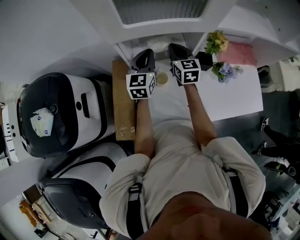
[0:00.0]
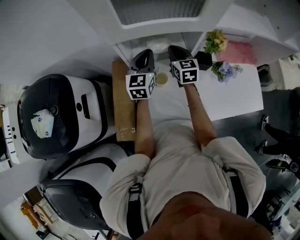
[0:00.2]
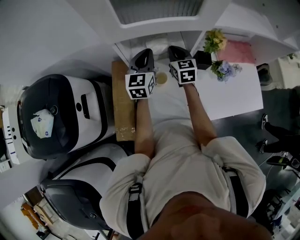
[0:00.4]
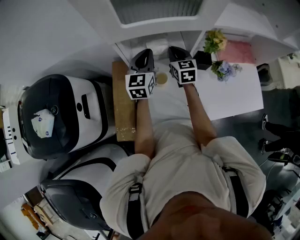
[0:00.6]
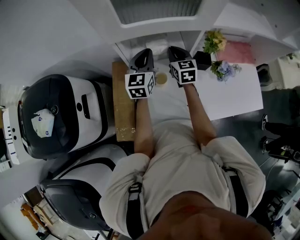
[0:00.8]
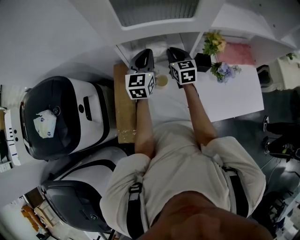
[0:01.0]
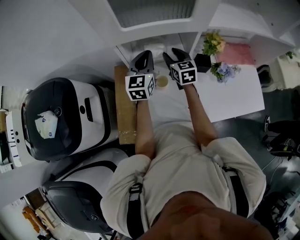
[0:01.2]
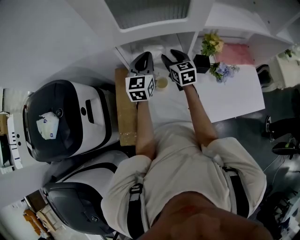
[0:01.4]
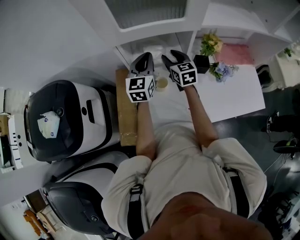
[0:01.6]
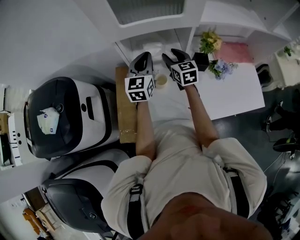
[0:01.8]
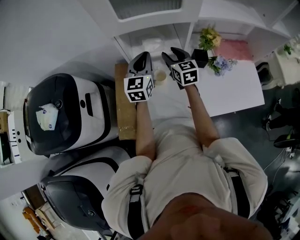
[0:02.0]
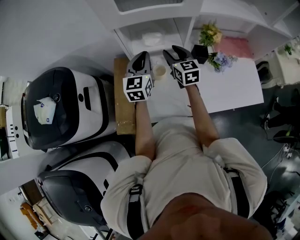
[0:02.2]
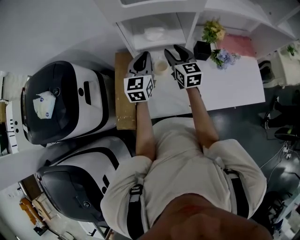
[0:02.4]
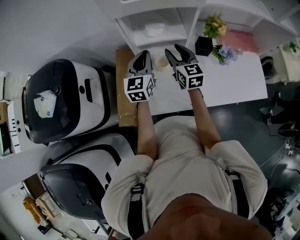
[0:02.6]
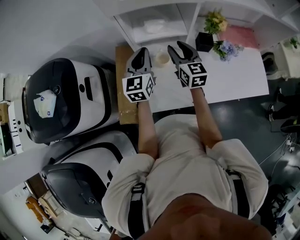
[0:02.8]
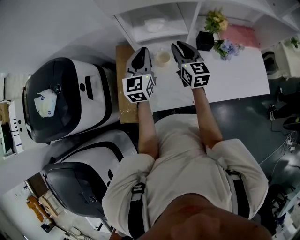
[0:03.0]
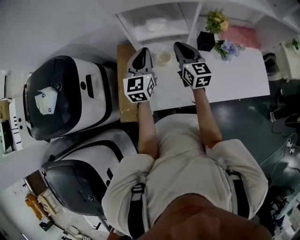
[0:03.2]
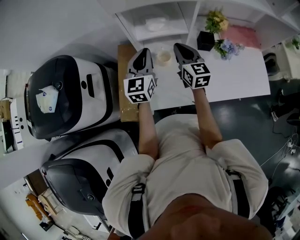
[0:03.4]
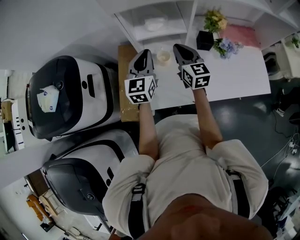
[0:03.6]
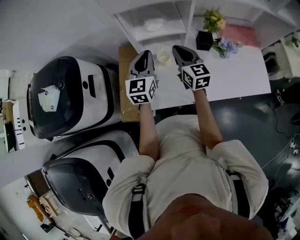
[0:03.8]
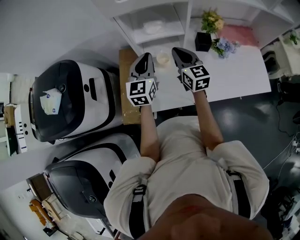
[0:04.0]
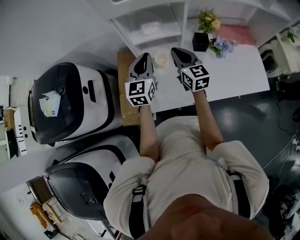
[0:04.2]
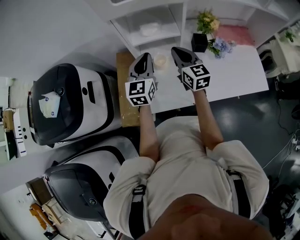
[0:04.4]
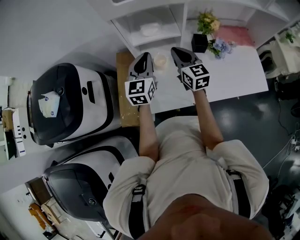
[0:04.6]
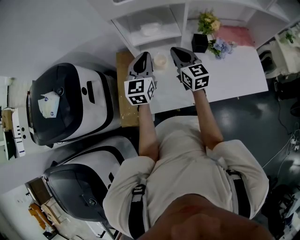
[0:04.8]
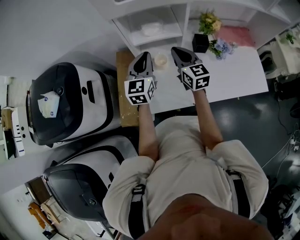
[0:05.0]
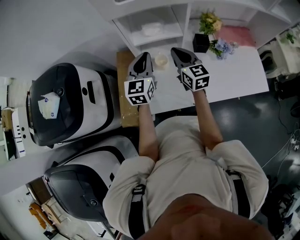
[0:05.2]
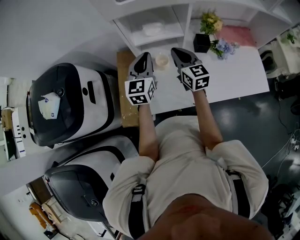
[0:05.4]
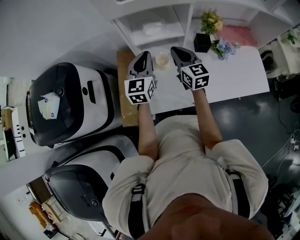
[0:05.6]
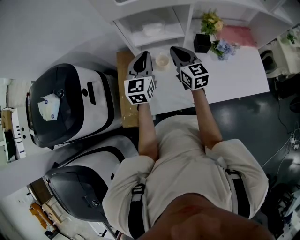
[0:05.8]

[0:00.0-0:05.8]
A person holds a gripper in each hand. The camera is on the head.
0:00.0 to 0:01.4: The right gripper opens.
0:01.4 to 0:02.8: The grippers both shift backward by approximately 10 cm.
0:02.8 to 0:04.4: The left gripper changes place by about 5 cm; the right gripper moves some 5 cm, and closes its fingers.
0:04.4 to 0:05.8: The grippers stay close to where they were, moving slightly.

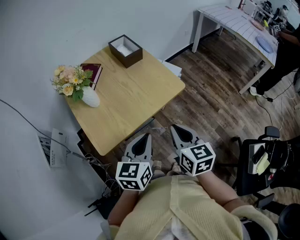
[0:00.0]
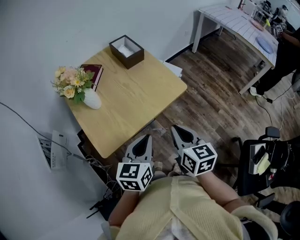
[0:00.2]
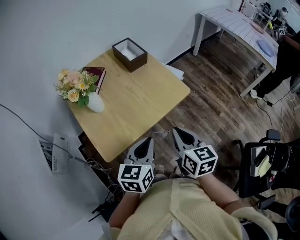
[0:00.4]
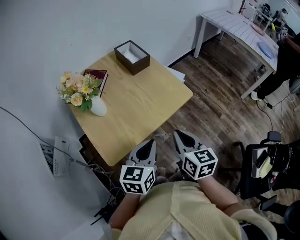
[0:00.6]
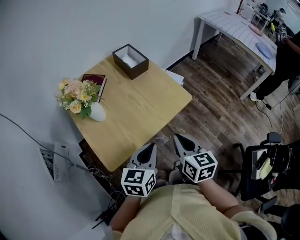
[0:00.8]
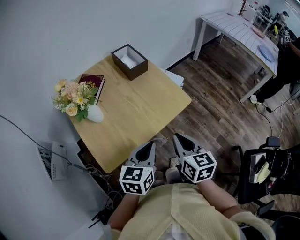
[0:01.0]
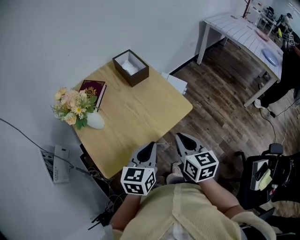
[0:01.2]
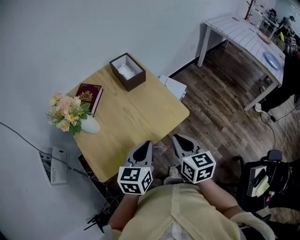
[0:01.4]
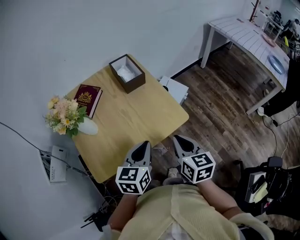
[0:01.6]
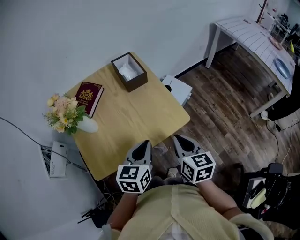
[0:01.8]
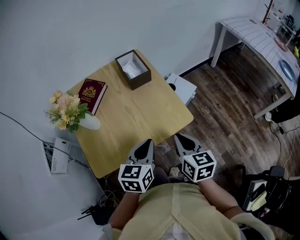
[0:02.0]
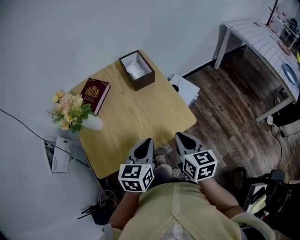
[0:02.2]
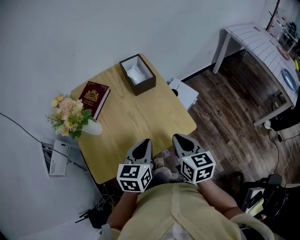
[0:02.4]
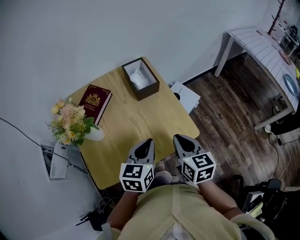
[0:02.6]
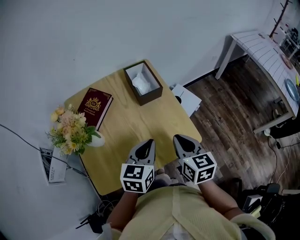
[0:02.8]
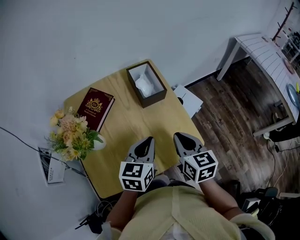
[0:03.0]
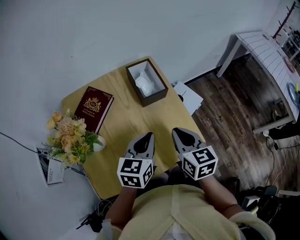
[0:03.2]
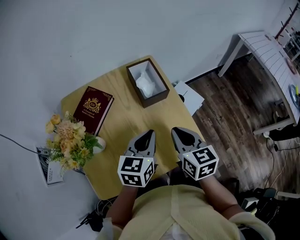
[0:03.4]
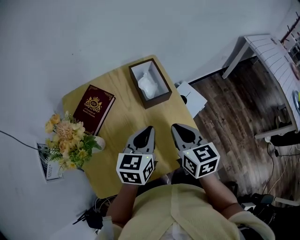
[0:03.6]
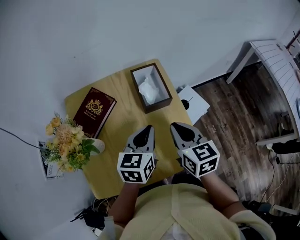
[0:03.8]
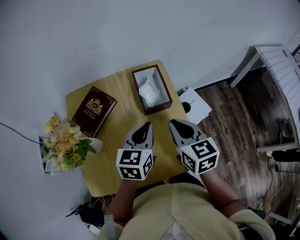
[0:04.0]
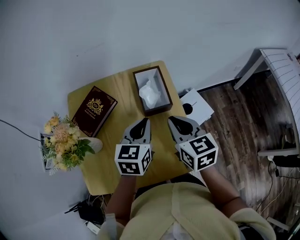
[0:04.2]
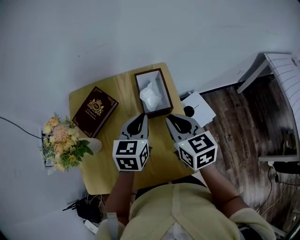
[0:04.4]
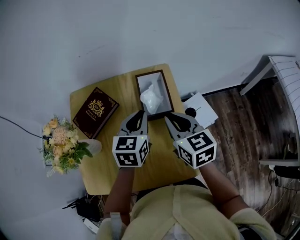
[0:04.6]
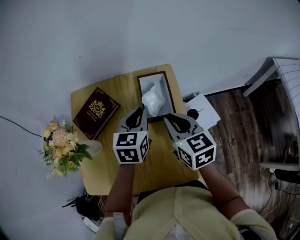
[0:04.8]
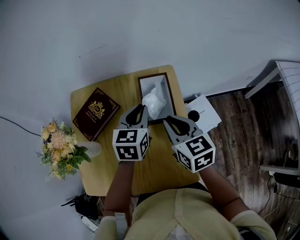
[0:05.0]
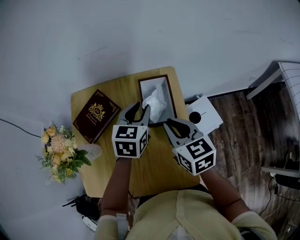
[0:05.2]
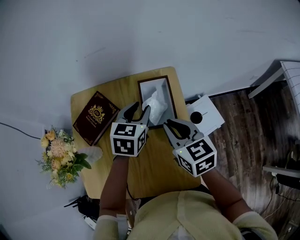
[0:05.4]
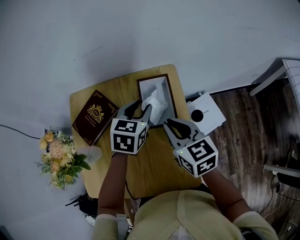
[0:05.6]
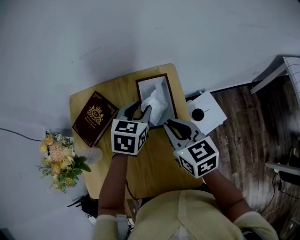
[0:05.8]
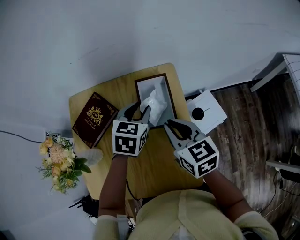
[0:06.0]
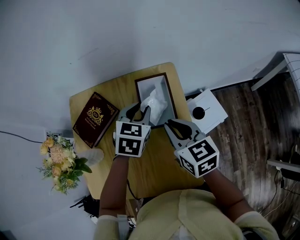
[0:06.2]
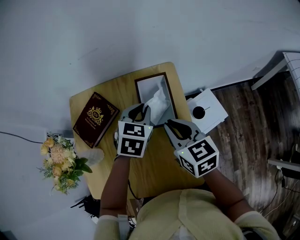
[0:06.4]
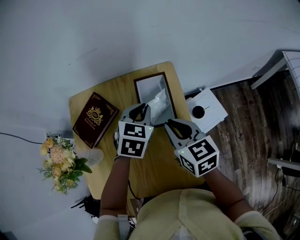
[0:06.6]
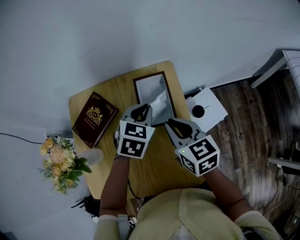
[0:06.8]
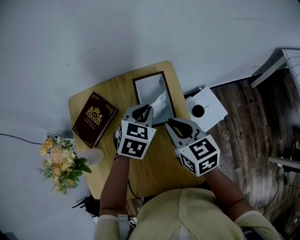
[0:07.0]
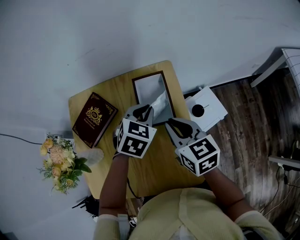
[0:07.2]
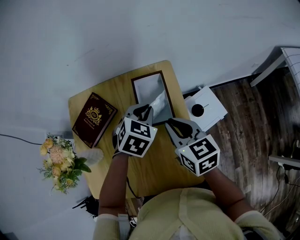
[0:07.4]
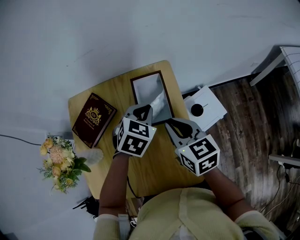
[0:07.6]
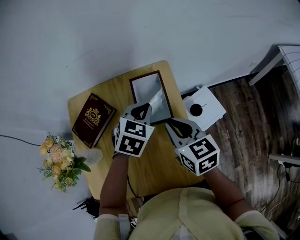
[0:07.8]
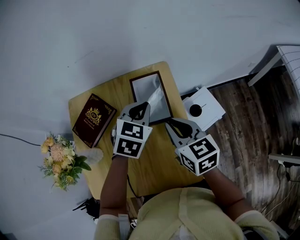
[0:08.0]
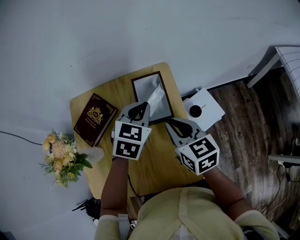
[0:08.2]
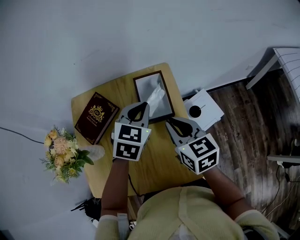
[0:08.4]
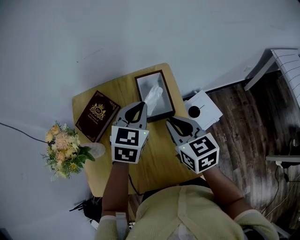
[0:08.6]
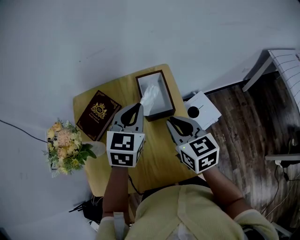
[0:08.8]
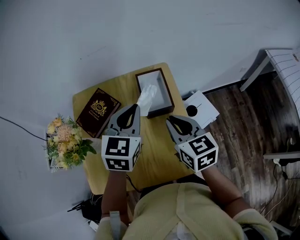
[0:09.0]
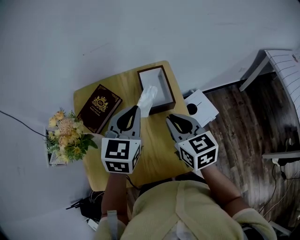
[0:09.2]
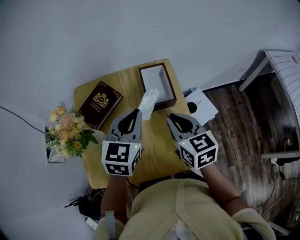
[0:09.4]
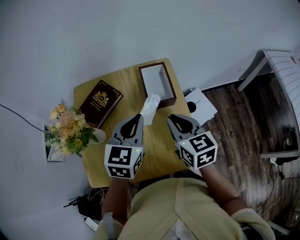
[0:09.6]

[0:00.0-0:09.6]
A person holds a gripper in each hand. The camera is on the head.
0:00.0 to 0:01.6: The two grippers go some 15 cm forward.
0:01.6 to 0:03.2: The two grippers go some 15 cm forward.
0:03.2 to 0:04.8: Both grippers move forward, roughly 15 cm. The left gripper changes its angle by roughly 20 degrees, while the right gripper turns by approximately 20 degrees.
0:04.8 to 0:06.4: The left gripper ends up approximately 5 cm from where it was, and swivels about 20 degrees.
0:06.4 to 0:08.0: The grippers make only small movements.
0:08.0 to 0:09.6: The left gripper shifts some 15 cm backward, to the left and upward, and rotates approximately 20 degrees, while the right gripper heads backward, covering about 5 cm.

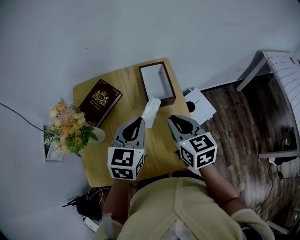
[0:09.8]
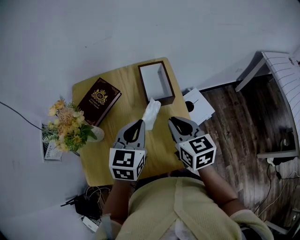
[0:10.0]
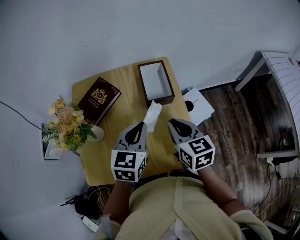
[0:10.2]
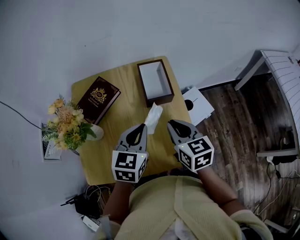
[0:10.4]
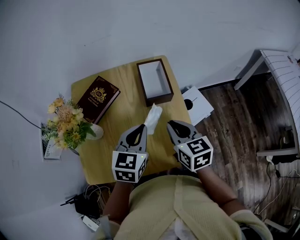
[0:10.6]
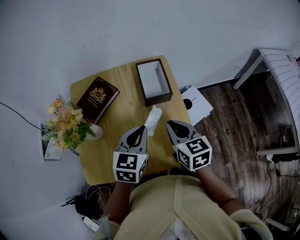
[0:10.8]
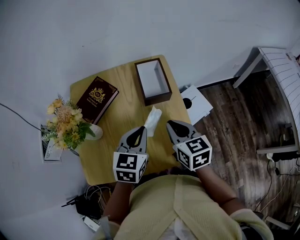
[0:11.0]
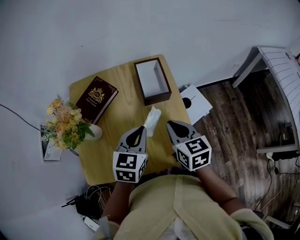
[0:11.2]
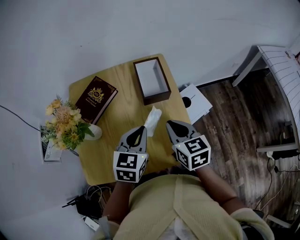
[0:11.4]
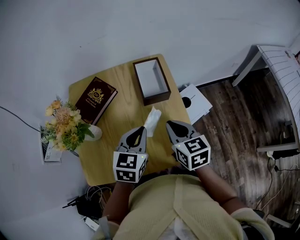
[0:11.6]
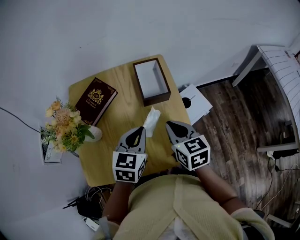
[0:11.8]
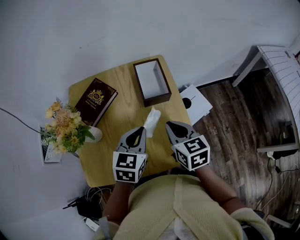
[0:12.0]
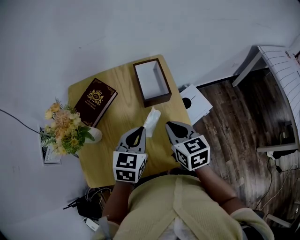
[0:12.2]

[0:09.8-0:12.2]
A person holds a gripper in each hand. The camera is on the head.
0:09.8 to 0:11.0: The left gripper shifts by approximately 5 cm.
0:11.0 to 0:12.2: Both grippers stay about where they are.

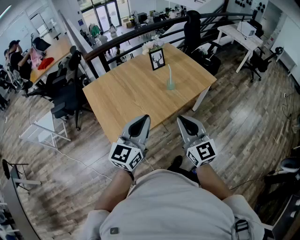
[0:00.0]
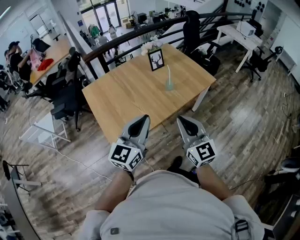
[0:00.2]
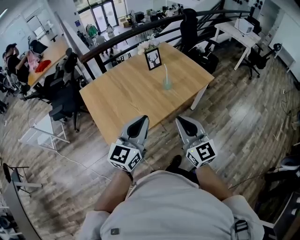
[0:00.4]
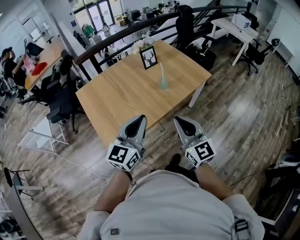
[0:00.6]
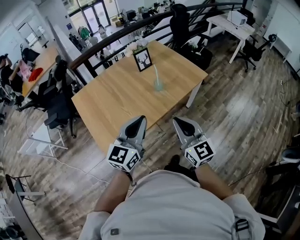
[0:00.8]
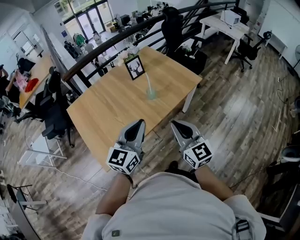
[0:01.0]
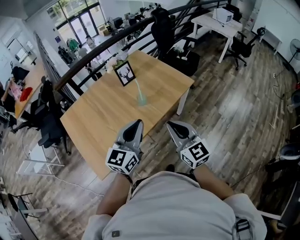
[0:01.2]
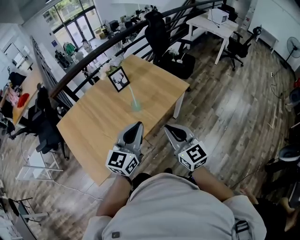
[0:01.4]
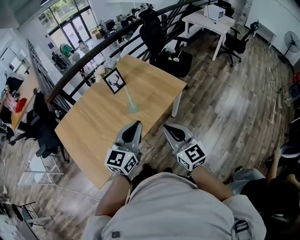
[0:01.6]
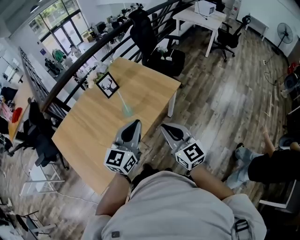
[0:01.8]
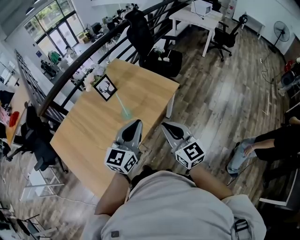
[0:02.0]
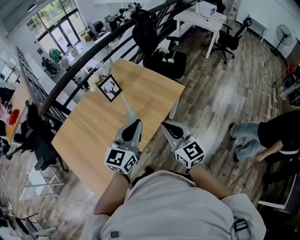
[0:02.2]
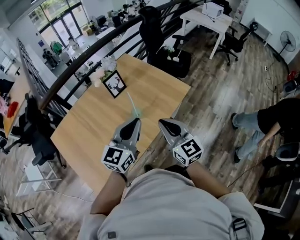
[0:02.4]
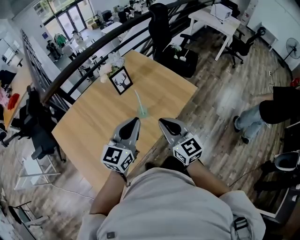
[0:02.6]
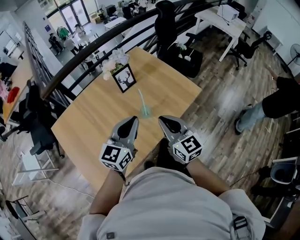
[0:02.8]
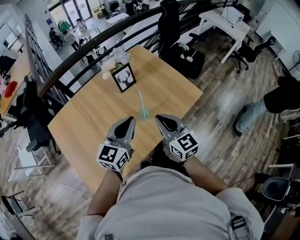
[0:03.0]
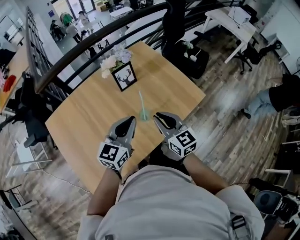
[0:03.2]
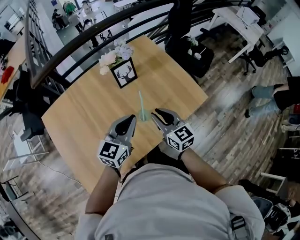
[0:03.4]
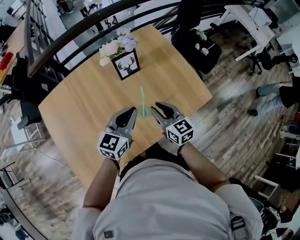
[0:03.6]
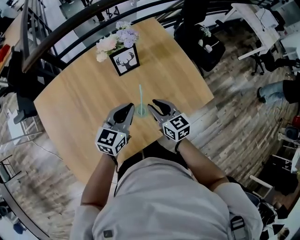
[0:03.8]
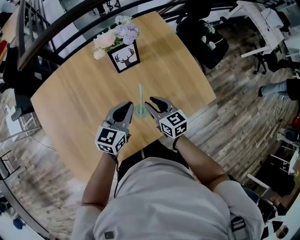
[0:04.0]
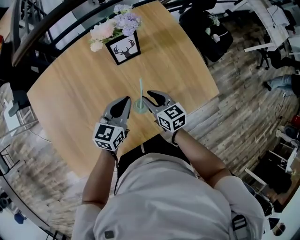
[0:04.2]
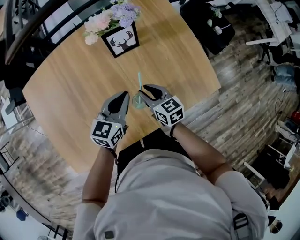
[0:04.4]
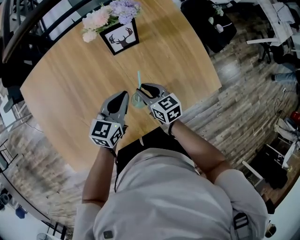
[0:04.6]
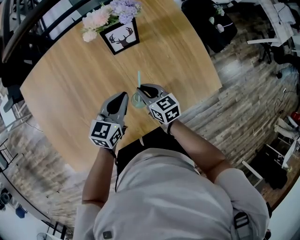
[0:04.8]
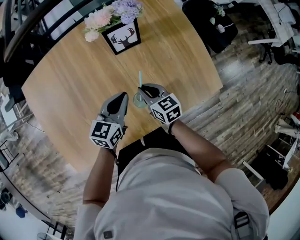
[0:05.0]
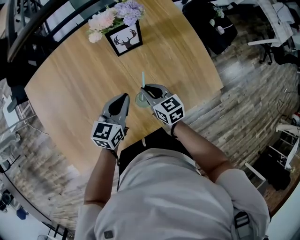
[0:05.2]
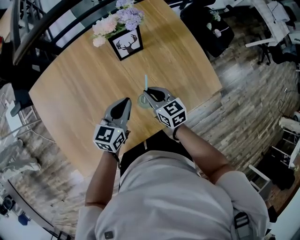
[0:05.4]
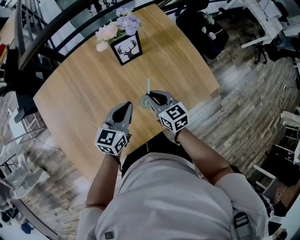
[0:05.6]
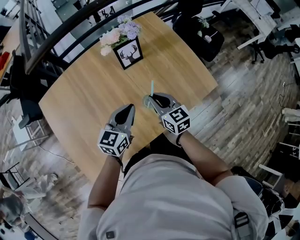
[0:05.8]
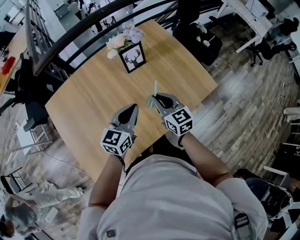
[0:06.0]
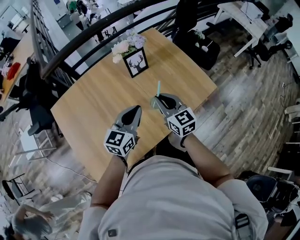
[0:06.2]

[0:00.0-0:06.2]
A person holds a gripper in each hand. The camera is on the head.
0:00.0 to 0:01.6: The two grippers go approximately 30 cm to the right and forward.
0:01.6 to 0:03.2: The two grippers go some 25 cm forward and to the left.
0:03.2 to 0:04.6: Both grippers travel together downward and forward, roughly 25 cm. The right gripper rotates roughly 30 degrees. Meanwhile the left gripper swivels approximately 20 degrees.
0:04.6 to 0:06.2: The right gripper moves upward and backward, about 20 cm, and turns by roughly 30 degrees. The left gripper goes about 20 cm upward, backward and to the left.
